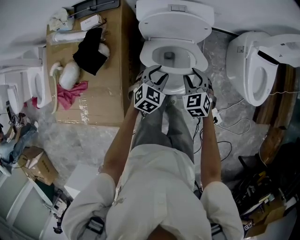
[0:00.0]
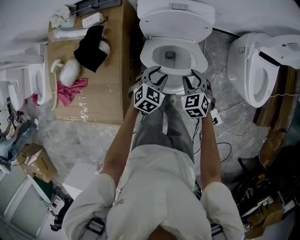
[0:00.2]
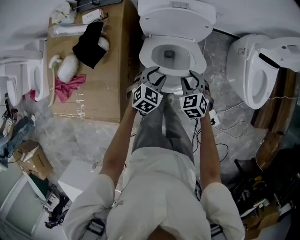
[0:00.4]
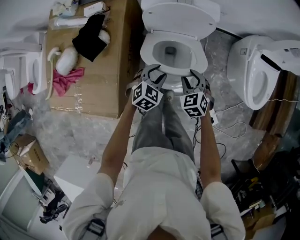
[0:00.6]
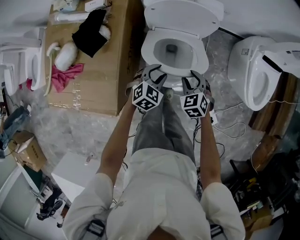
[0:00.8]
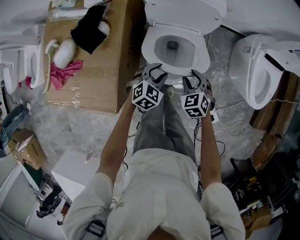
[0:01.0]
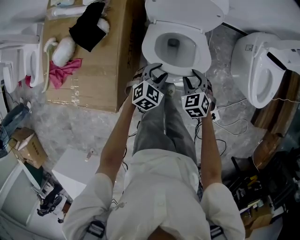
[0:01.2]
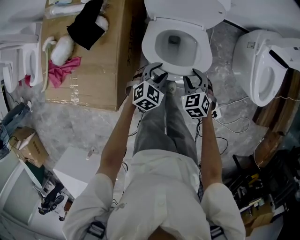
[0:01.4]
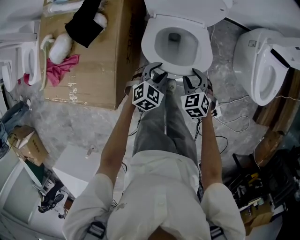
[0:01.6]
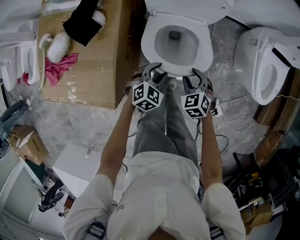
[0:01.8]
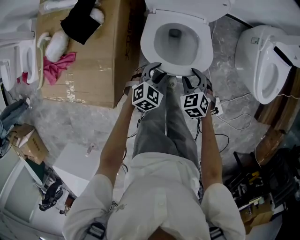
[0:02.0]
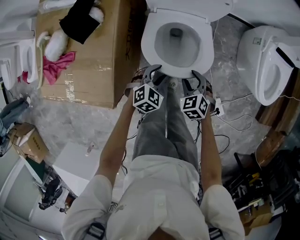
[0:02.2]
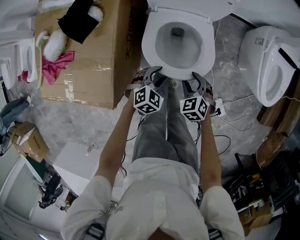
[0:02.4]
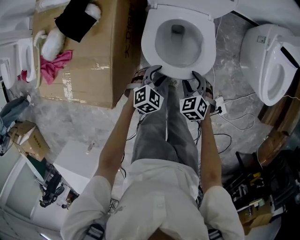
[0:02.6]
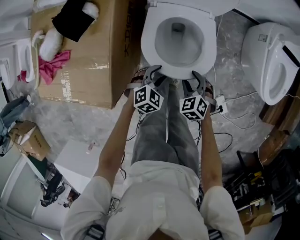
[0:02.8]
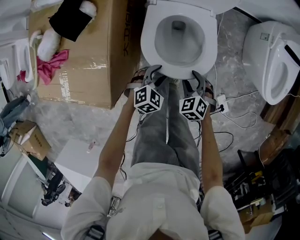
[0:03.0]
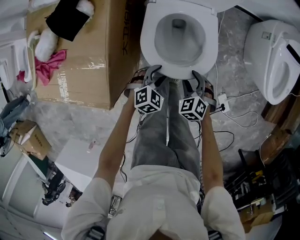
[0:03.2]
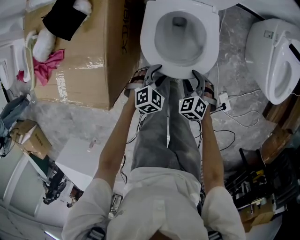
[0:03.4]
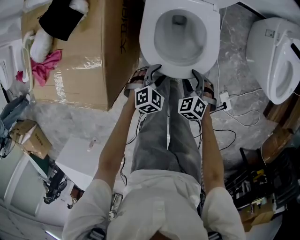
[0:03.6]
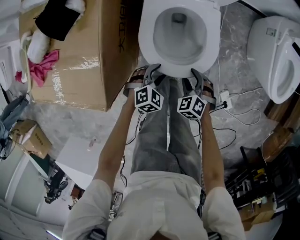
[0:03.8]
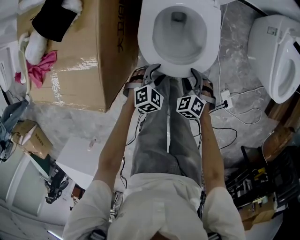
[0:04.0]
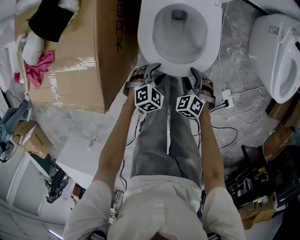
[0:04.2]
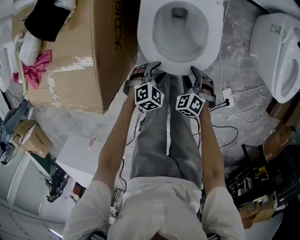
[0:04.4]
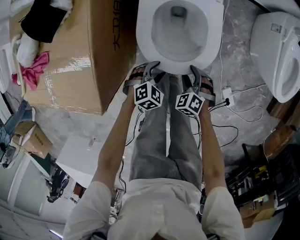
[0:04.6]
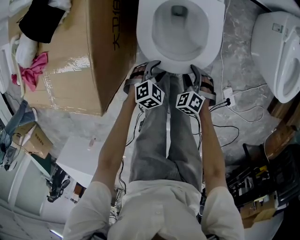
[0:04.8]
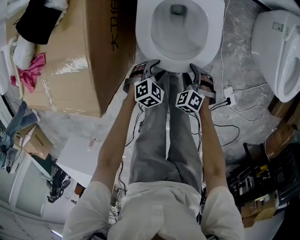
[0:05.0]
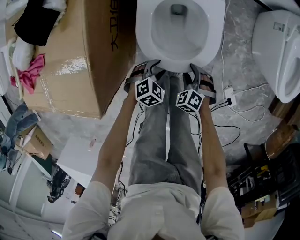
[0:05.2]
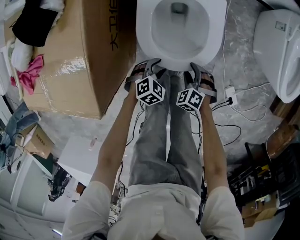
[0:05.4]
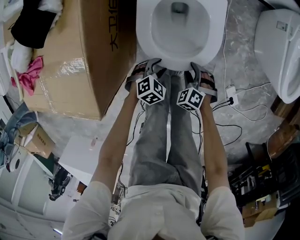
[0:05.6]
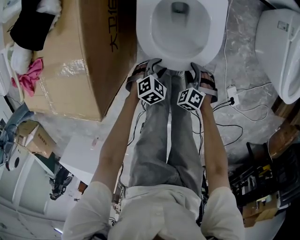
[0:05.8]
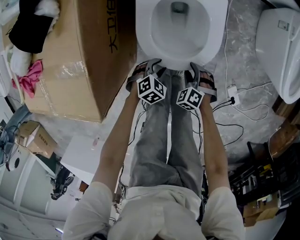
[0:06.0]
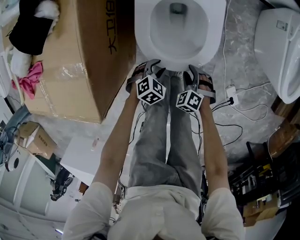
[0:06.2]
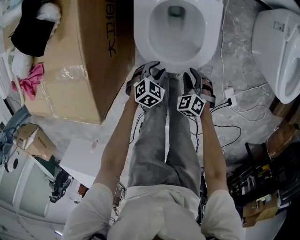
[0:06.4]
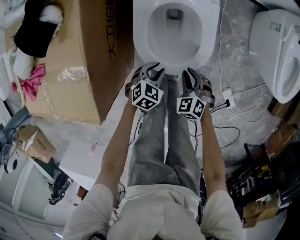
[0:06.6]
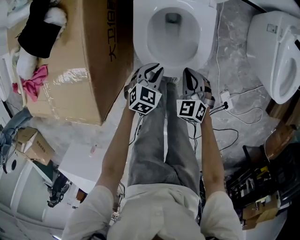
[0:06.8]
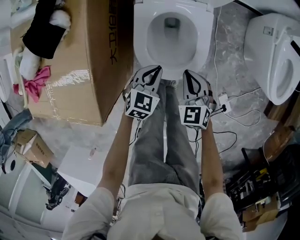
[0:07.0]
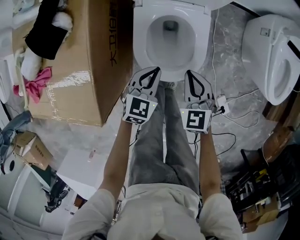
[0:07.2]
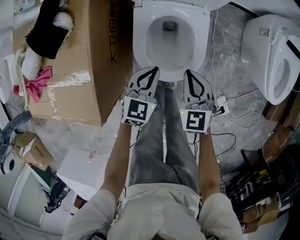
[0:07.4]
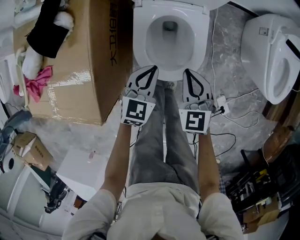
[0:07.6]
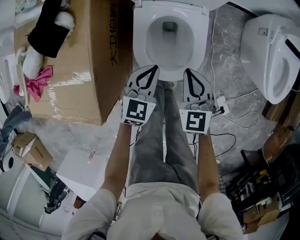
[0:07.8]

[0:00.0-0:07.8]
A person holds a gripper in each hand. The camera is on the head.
0:00.0 to 0:01.6: The grippers both shift backward and downward by approximately 10 cm.
0:01.6 to 0:03.2: The grippers both shift downward and backward by roughly 15 cm.
0:03.2 to 0:04.6: The grippers both shift downward by roughly 10 cm.
0:04.6 to 0:06.2: The two grippers go some 5 cm downward.
0:06.2 to 0:07.8: The grippers both shift upward and forward by about 25 cm. The left gripper tips its fingers upward by approximately 30 degrees, and closes. The right gripper angles its fingers upward, by about 30 degrees, and closes up.

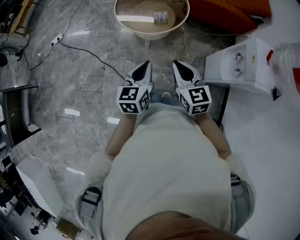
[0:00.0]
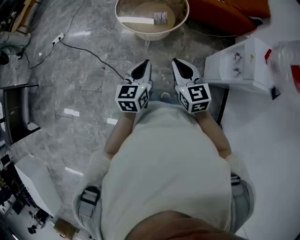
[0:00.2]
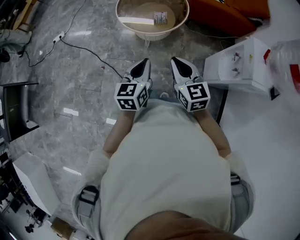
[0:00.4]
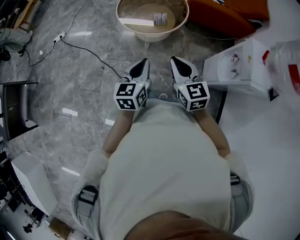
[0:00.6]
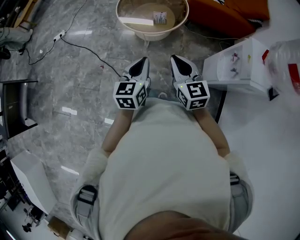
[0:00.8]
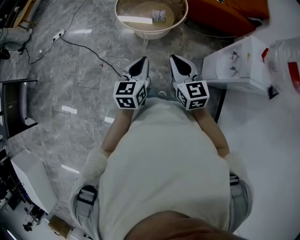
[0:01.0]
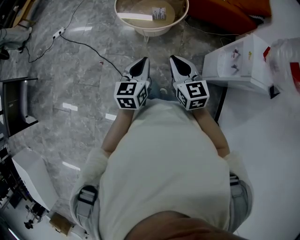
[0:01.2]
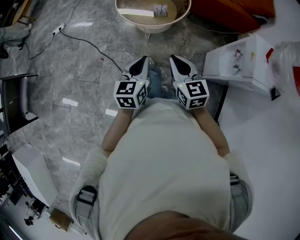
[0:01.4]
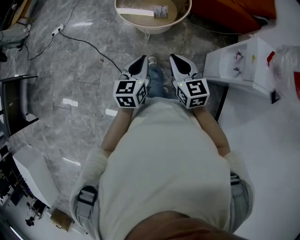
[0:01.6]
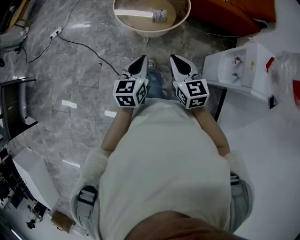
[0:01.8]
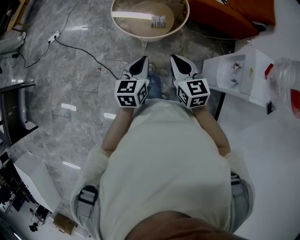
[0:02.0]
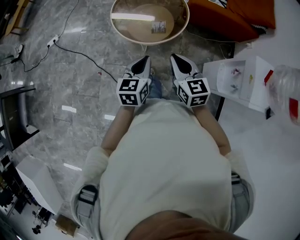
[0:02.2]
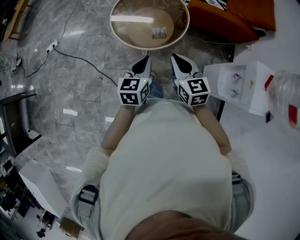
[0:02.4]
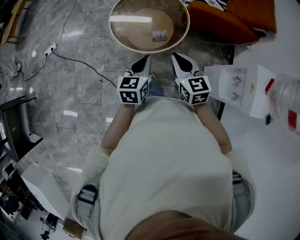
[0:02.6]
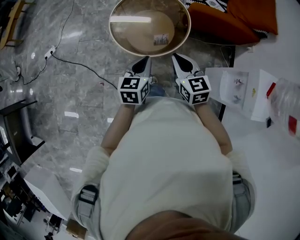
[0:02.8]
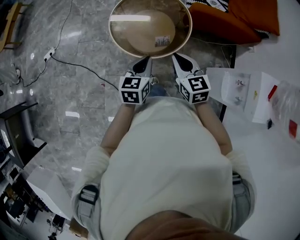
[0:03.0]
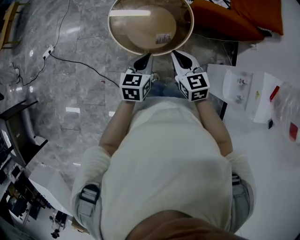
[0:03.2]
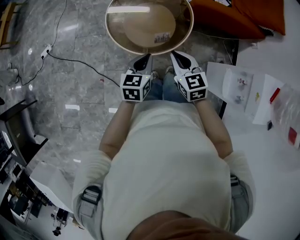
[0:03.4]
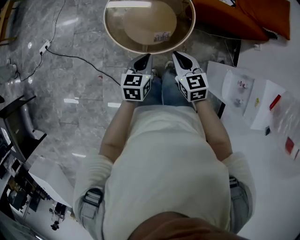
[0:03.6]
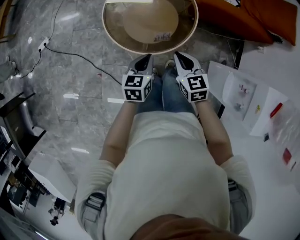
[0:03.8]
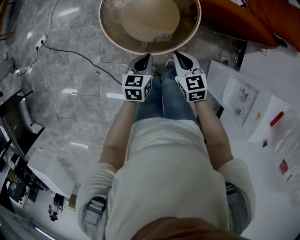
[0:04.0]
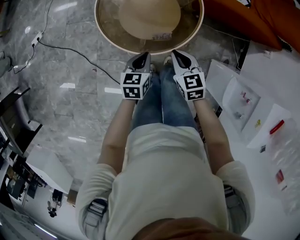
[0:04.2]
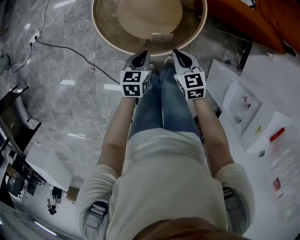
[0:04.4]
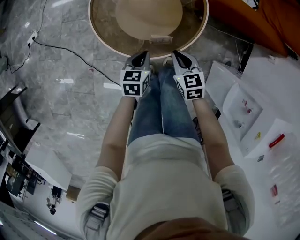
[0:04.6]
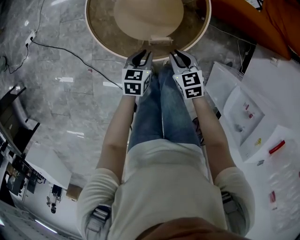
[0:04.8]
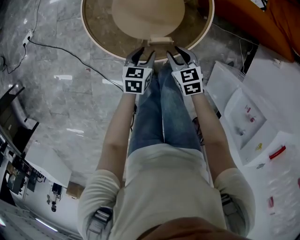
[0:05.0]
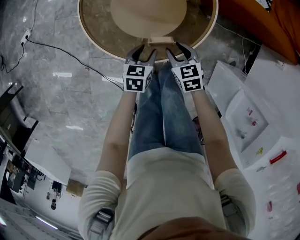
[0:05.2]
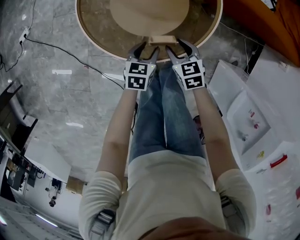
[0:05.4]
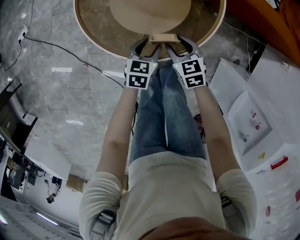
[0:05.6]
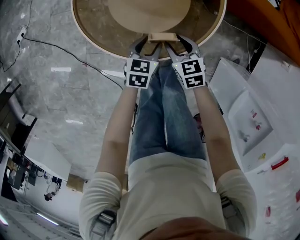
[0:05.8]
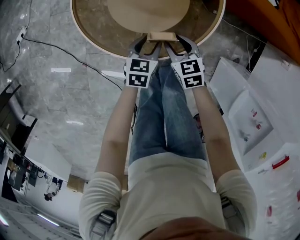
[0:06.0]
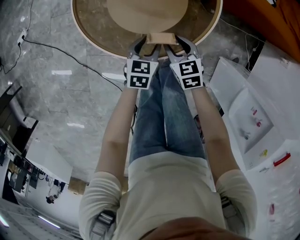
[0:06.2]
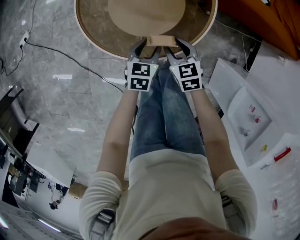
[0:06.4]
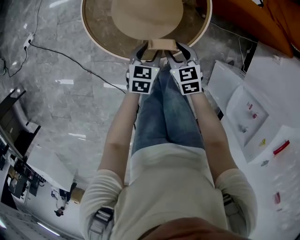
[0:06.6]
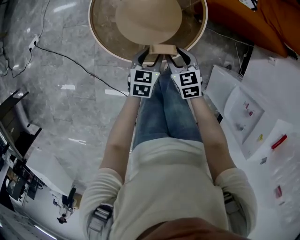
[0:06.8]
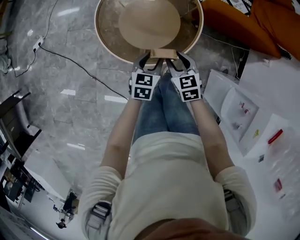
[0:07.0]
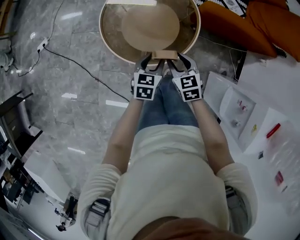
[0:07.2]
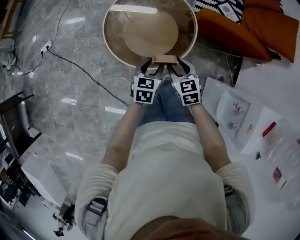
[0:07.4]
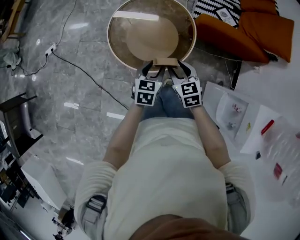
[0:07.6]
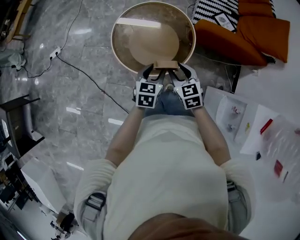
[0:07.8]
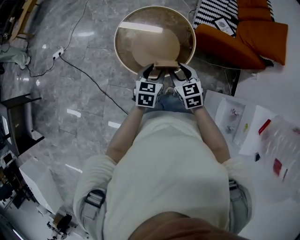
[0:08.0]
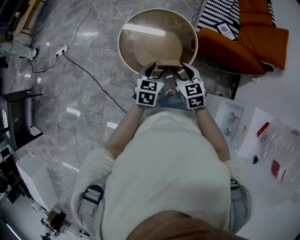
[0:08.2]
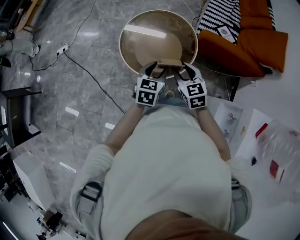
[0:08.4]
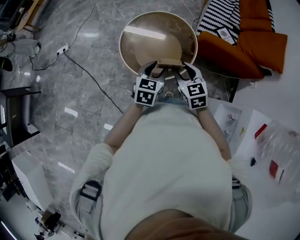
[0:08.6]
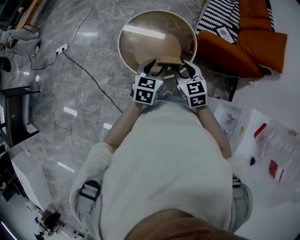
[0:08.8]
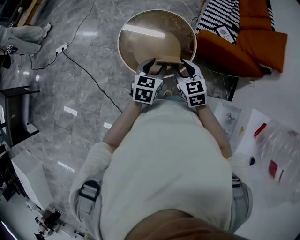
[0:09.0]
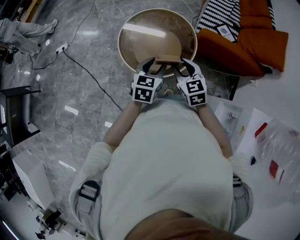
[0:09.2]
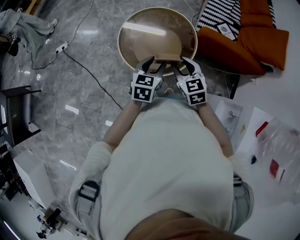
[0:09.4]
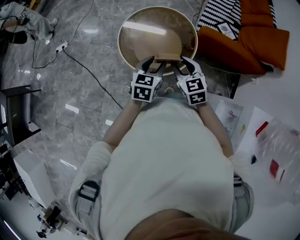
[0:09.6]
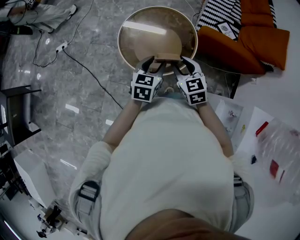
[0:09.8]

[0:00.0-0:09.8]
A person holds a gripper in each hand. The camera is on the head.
0:00.0 to 0:01.4: The grippers move only a little.
0:01.4 to 0:02.8: The two grippers go some 25 cm forward.
0:02.8 to 0:04.2: The two grippers go approximately 20 cm downward and forward.
0:04.2 to 0:05.6: Both grippers travel together downward, some 20 cm. The right gripper opens its fingers; the left gripper opens its fingers.
0:05.6 to 0:07.0: The two grippers go some 15 cm upward.
0:07.0 to 0:08.4: Both grippers move upward, some 20 cm.
0:08.4 to 0:09.8: The two grippers keep their place.

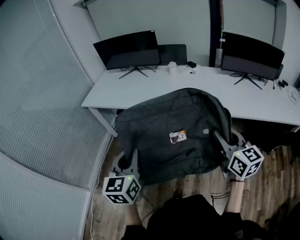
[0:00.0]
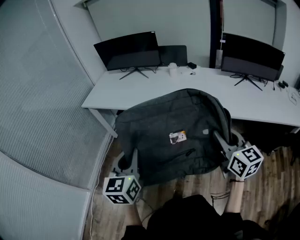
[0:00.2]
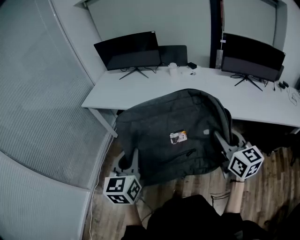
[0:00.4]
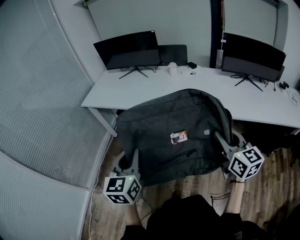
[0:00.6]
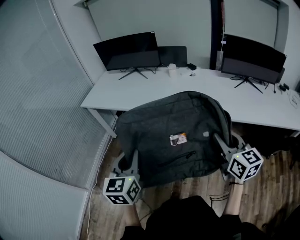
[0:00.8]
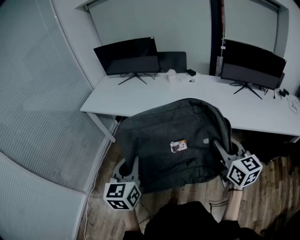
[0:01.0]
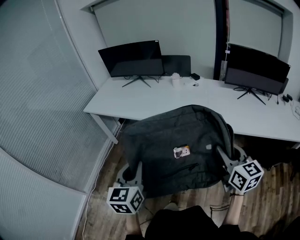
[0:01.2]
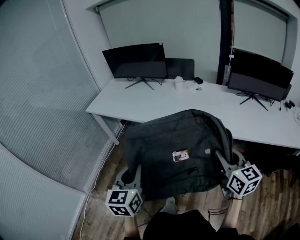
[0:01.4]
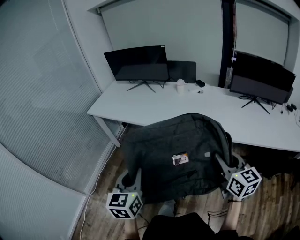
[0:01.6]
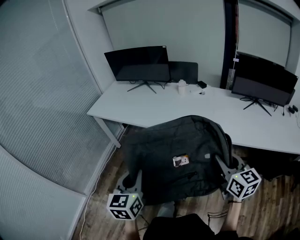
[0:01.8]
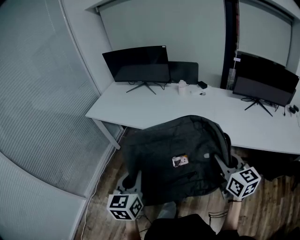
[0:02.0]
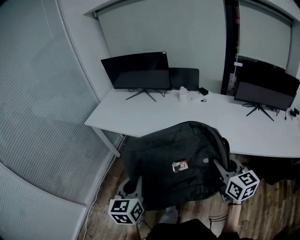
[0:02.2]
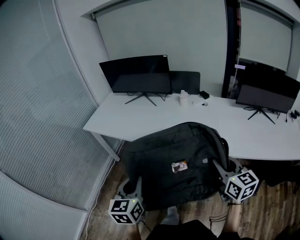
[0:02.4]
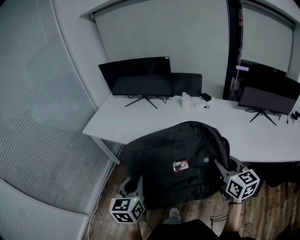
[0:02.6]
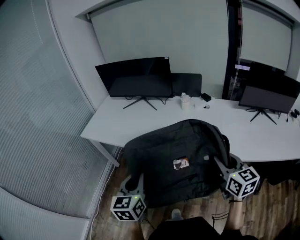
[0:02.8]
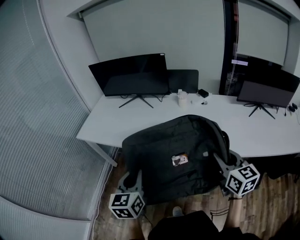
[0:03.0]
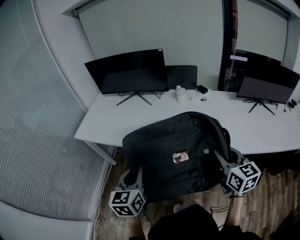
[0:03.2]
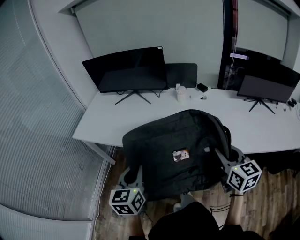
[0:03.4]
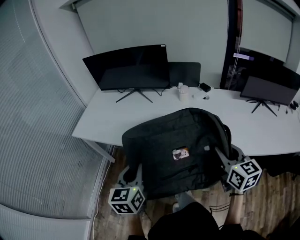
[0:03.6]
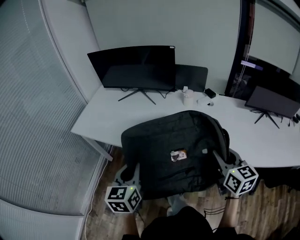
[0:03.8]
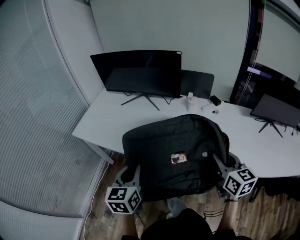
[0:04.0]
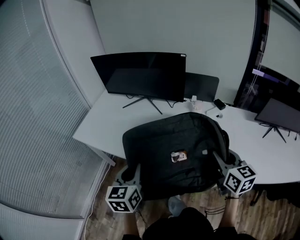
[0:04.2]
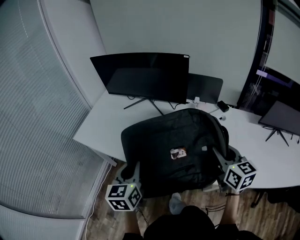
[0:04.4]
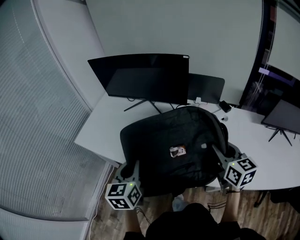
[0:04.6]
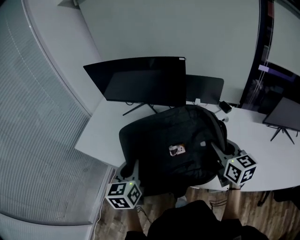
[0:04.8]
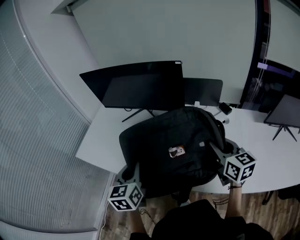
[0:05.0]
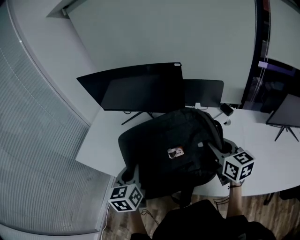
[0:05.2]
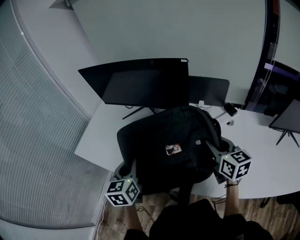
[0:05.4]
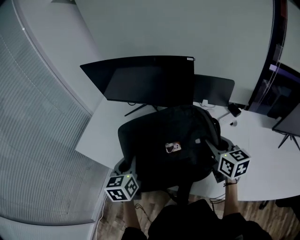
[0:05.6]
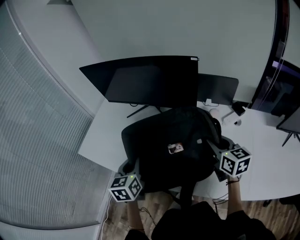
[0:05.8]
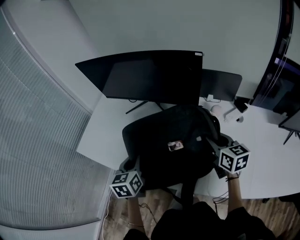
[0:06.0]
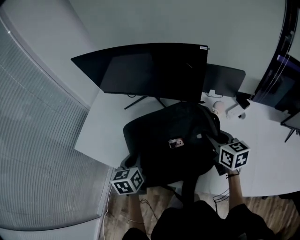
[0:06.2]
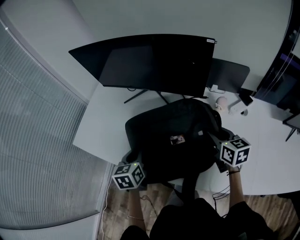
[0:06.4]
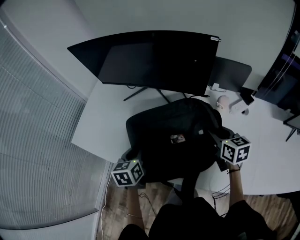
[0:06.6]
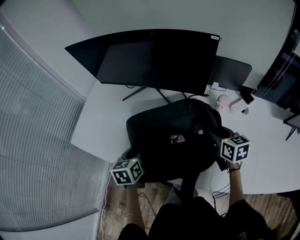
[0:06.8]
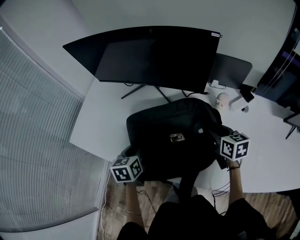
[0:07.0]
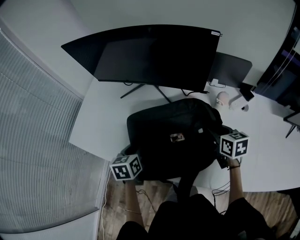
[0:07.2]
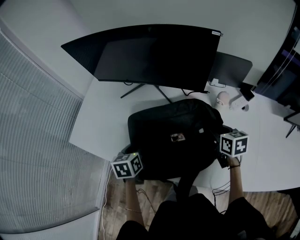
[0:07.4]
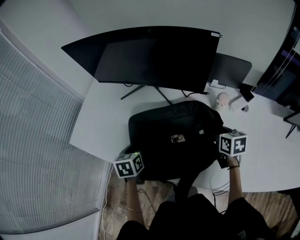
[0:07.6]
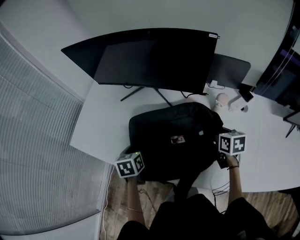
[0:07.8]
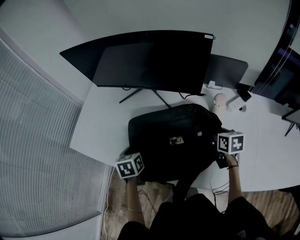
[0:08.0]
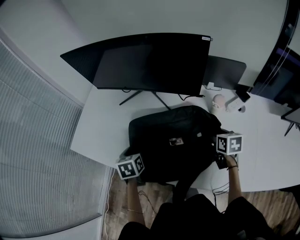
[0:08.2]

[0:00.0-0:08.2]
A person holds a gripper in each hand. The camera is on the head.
0:00.0 to 0:01.6: The right gripper changes place by approximately 5 cm.
0:01.6 to 0:03.2: The two grippers go some 25 cm forward.
0:03.2 to 0:05.0: The grippers both shift forward by some 30 cm.
0:05.0 to 0:06.6: The right gripper is displaced forward and downward by roughly 20 cm. The left gripper travels downward and forward by about 20 cm.
0:06.6 to 0:08.2: The left gripper moves approximately 5 cm, and opens up. The right gripper heads downward, covering roughly 5 cm, and opens up.
